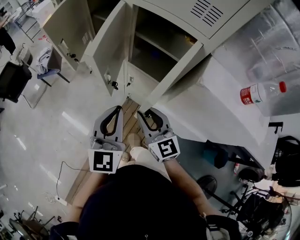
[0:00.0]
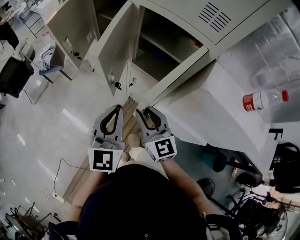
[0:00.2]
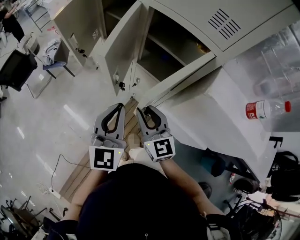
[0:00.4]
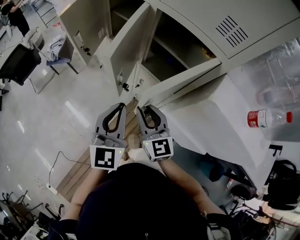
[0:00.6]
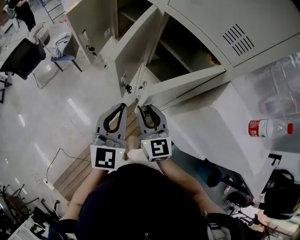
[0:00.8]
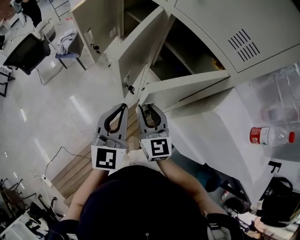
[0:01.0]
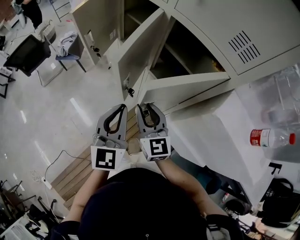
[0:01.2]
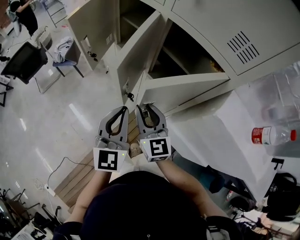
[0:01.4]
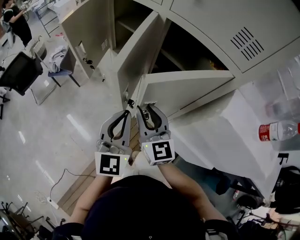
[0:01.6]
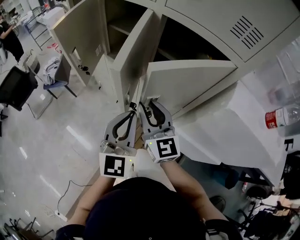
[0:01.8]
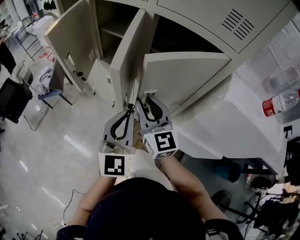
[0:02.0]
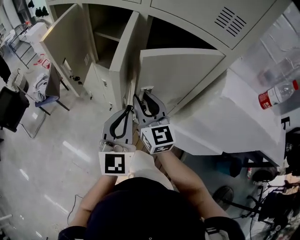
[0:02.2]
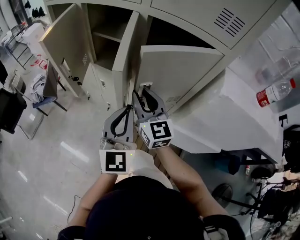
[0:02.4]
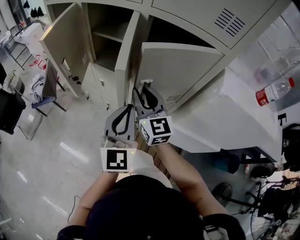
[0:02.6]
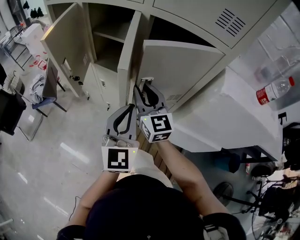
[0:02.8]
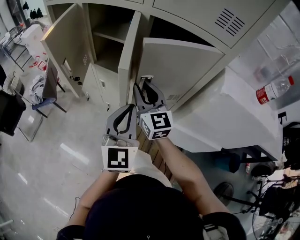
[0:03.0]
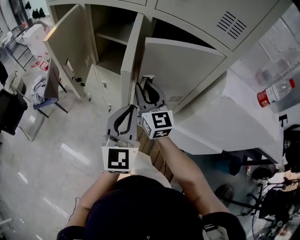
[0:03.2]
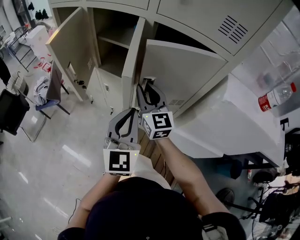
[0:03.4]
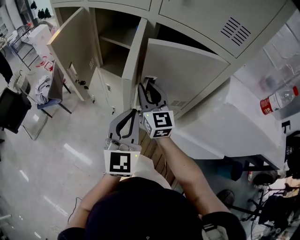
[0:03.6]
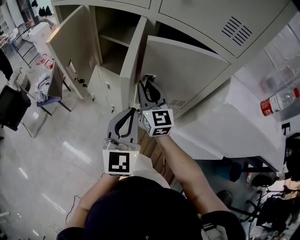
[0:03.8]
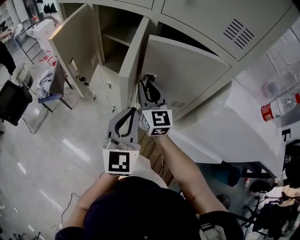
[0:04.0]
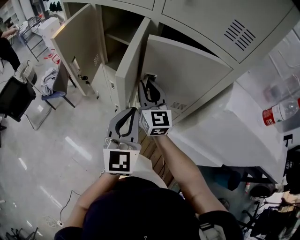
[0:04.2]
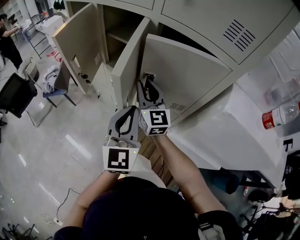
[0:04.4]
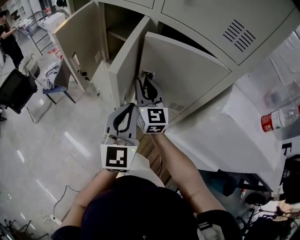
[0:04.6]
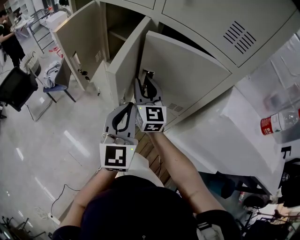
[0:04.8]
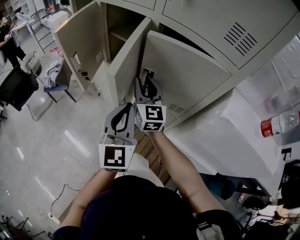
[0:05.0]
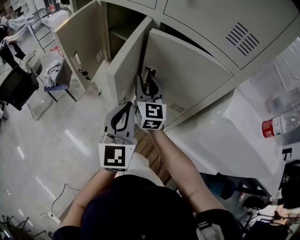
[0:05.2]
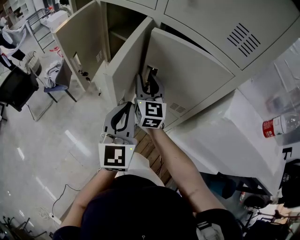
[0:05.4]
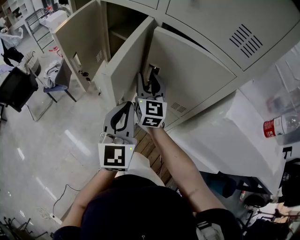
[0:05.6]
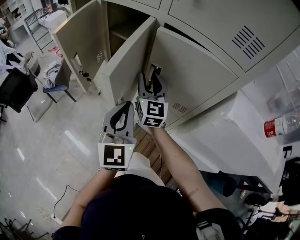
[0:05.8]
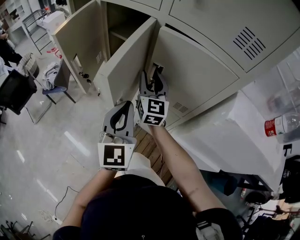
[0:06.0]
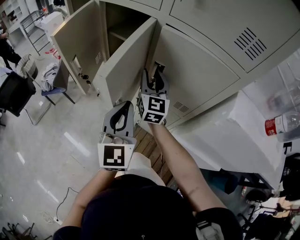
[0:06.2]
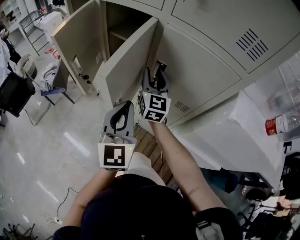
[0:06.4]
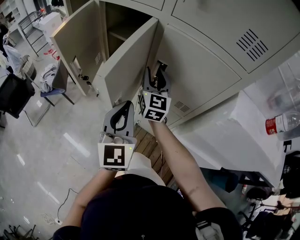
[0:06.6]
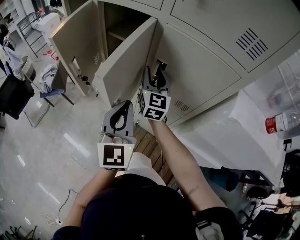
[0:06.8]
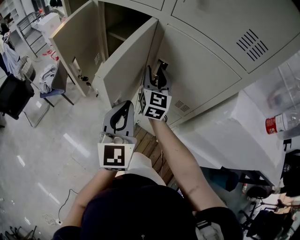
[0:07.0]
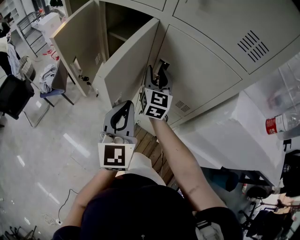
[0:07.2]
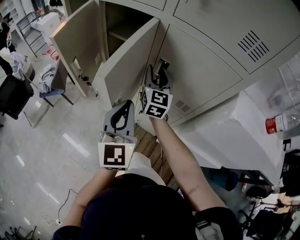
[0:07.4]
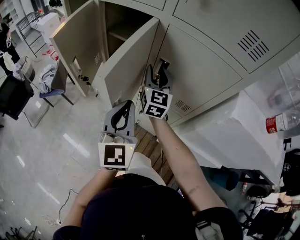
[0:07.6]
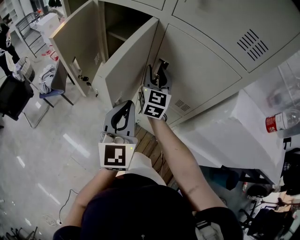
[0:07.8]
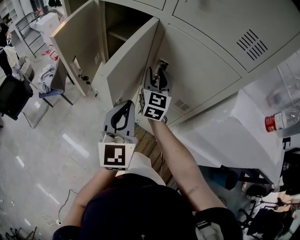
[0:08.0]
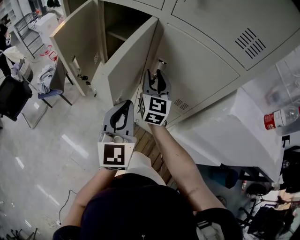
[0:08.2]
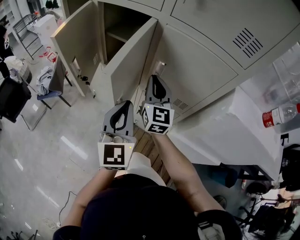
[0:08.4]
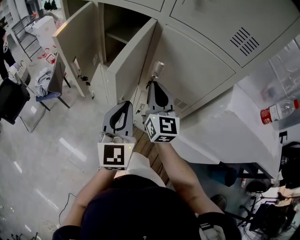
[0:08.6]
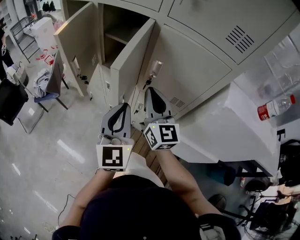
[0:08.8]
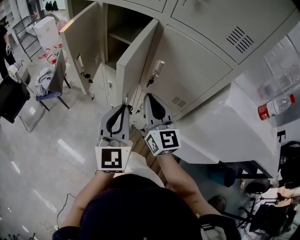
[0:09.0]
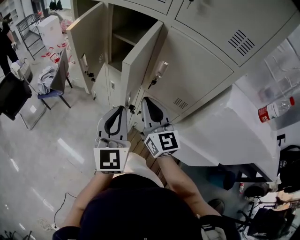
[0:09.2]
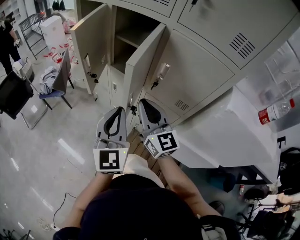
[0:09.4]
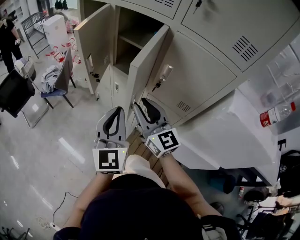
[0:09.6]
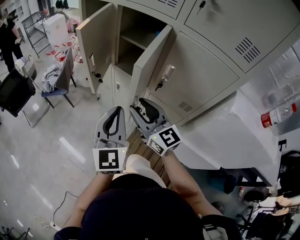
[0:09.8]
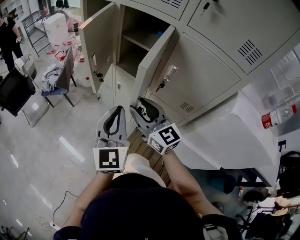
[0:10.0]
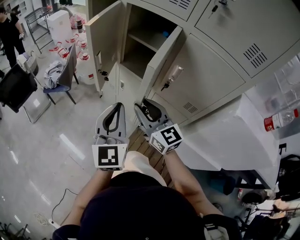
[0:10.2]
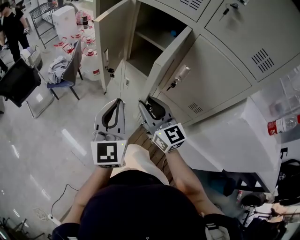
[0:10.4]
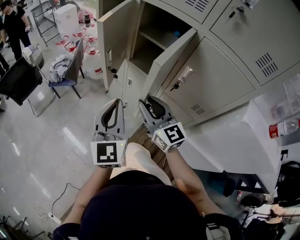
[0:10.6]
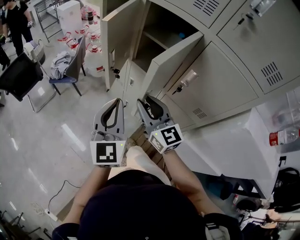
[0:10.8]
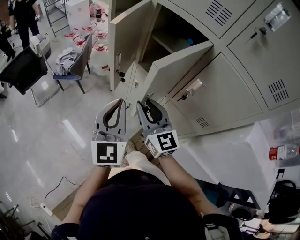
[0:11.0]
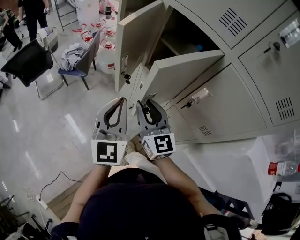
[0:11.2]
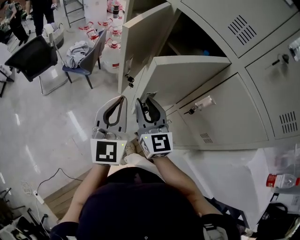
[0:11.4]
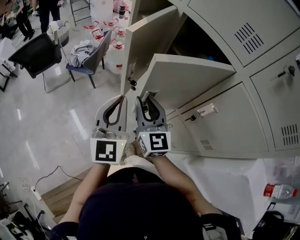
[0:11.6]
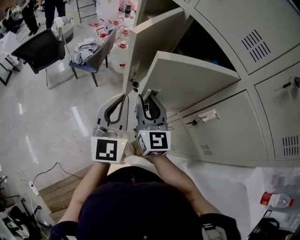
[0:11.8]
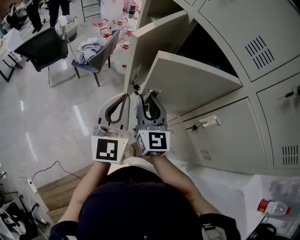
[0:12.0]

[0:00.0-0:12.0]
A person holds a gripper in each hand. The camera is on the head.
0:00.0 to 0:01.6: The right gripper shifts about 10 cm forward and to the left, while the left gripper travels forward by approximately 5 cm.
0:01.6 to 0:03.0: The right gripper travels forward by roughly 10 cm.
0:03.0 to 0:04.4: The grippers stay close to where they were, moving slightly.
0:04.4 to 0:06.0: The right gripper heads forward, covering approximately 5 cm.
0:06.0 to 0:07.6: The grippers make only small movements.
0:07.6 to 0:09.0: The left gripper heads backward, covering approximately 5 cm. The right gripper moves backward, some 15 cm, and closes.
0:09.0 to 0:10.4: Both grippers move to the left, about 10 cm. The right gripper changes its angle by roughly 20 degrees, and opens its fingers.
0:10.4 to 0:12.0: The left gripper shifts approximately 10 cm forward. The right gripper travels forward and to the left by roughly 15 cm.

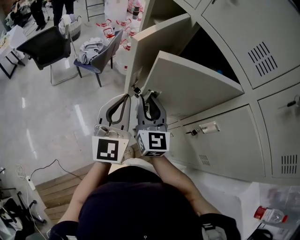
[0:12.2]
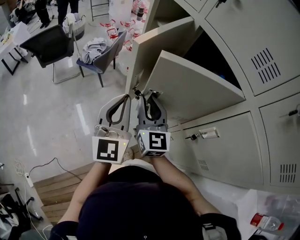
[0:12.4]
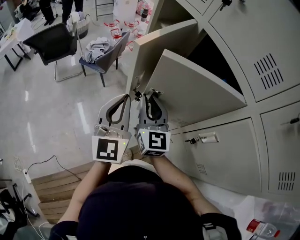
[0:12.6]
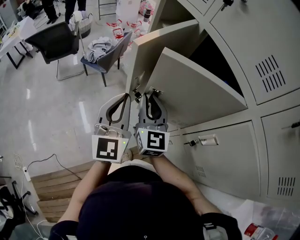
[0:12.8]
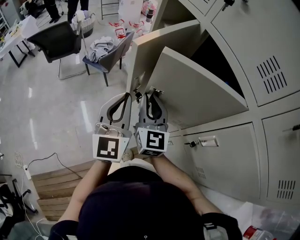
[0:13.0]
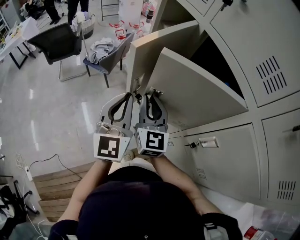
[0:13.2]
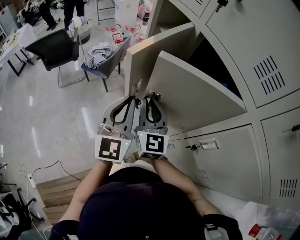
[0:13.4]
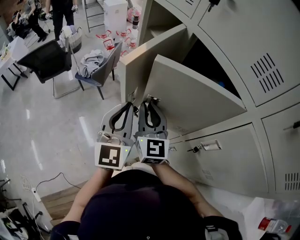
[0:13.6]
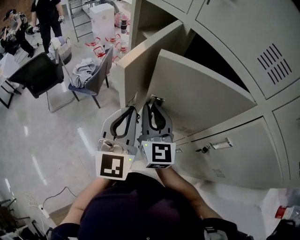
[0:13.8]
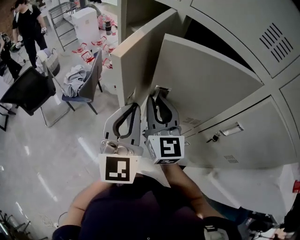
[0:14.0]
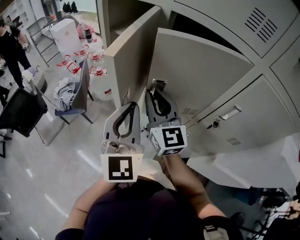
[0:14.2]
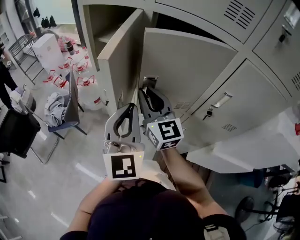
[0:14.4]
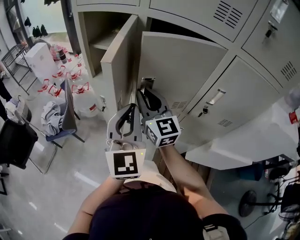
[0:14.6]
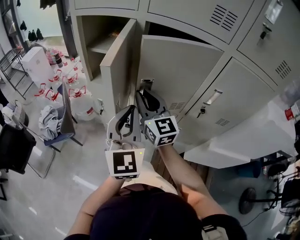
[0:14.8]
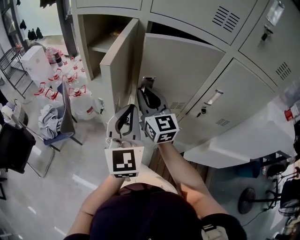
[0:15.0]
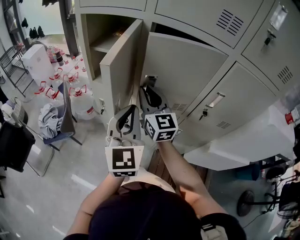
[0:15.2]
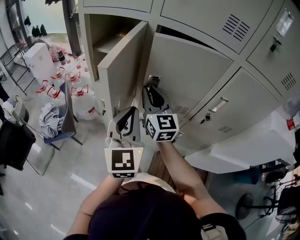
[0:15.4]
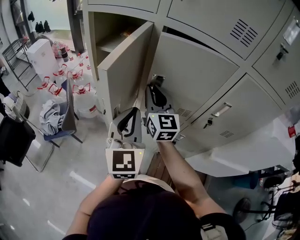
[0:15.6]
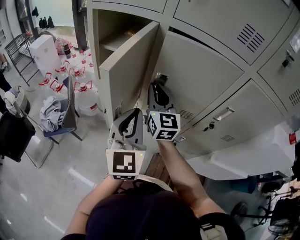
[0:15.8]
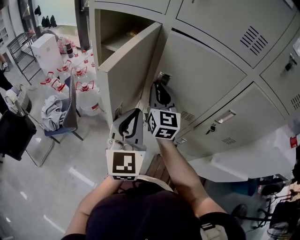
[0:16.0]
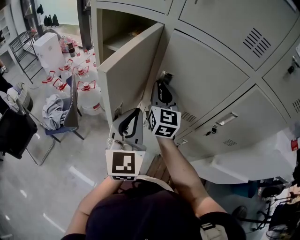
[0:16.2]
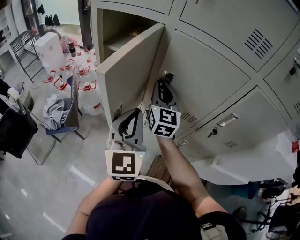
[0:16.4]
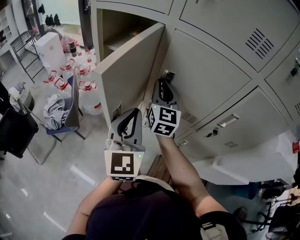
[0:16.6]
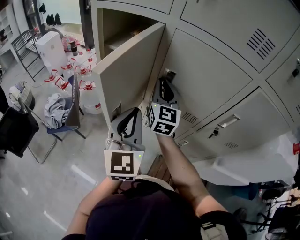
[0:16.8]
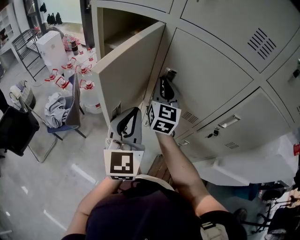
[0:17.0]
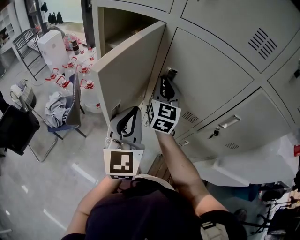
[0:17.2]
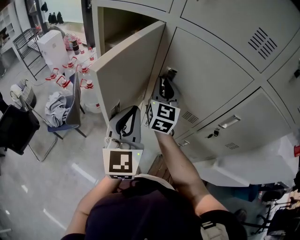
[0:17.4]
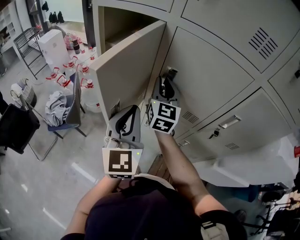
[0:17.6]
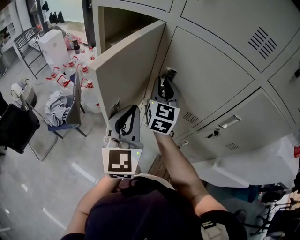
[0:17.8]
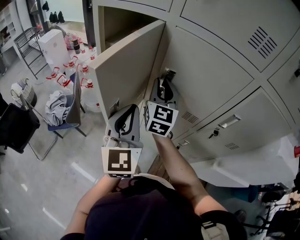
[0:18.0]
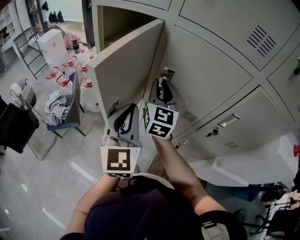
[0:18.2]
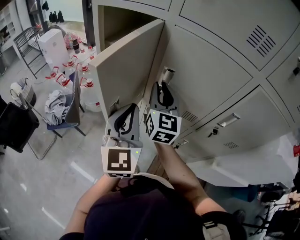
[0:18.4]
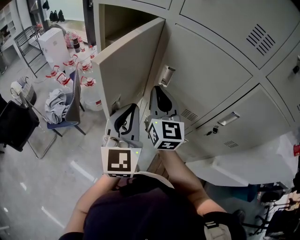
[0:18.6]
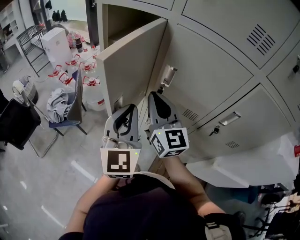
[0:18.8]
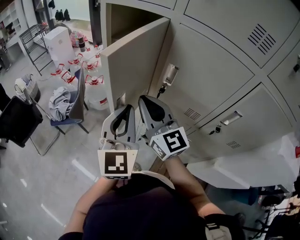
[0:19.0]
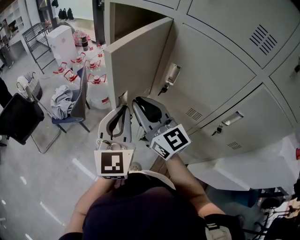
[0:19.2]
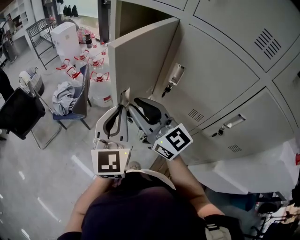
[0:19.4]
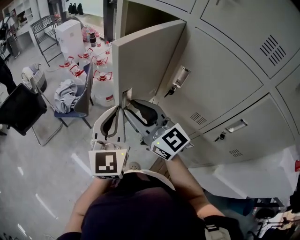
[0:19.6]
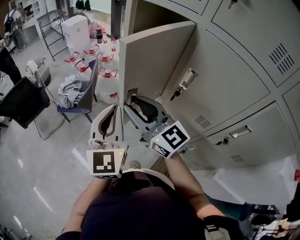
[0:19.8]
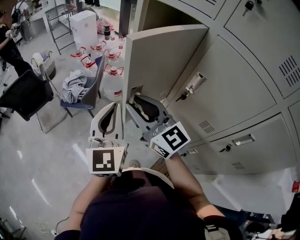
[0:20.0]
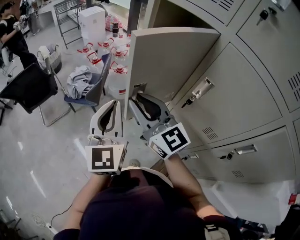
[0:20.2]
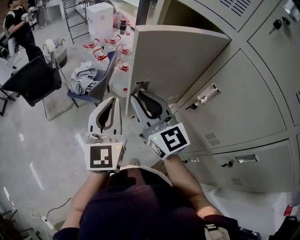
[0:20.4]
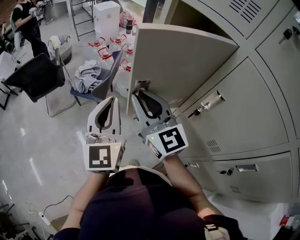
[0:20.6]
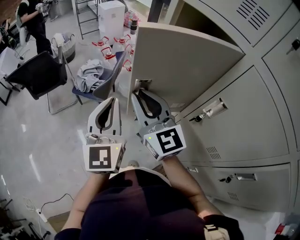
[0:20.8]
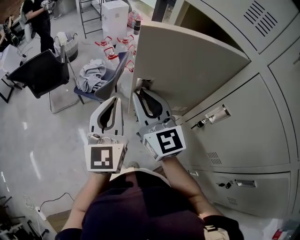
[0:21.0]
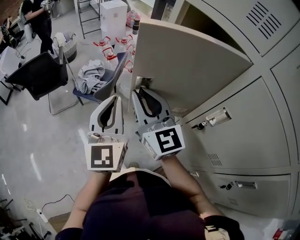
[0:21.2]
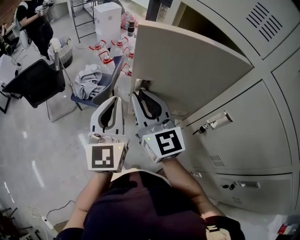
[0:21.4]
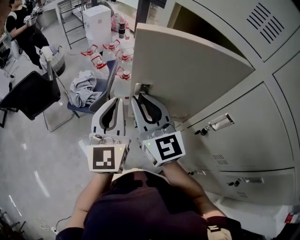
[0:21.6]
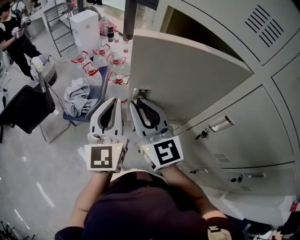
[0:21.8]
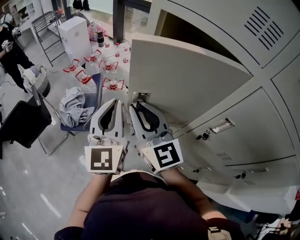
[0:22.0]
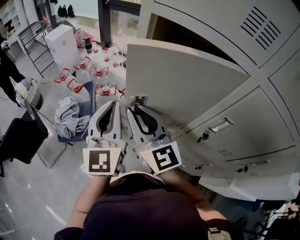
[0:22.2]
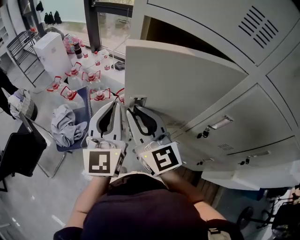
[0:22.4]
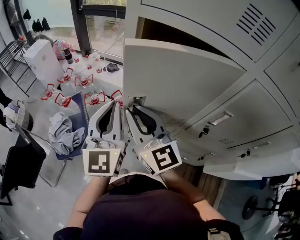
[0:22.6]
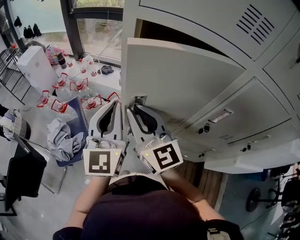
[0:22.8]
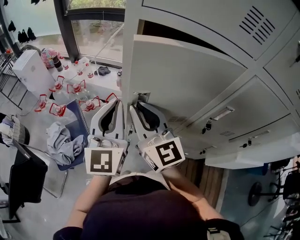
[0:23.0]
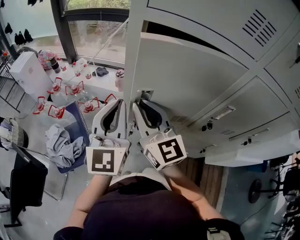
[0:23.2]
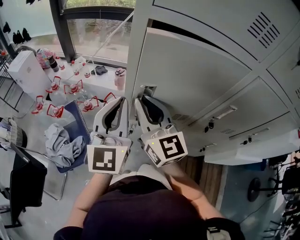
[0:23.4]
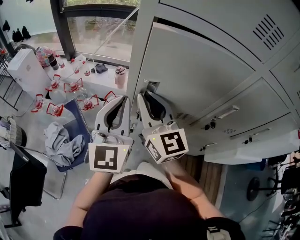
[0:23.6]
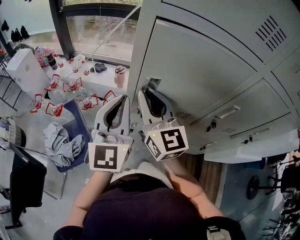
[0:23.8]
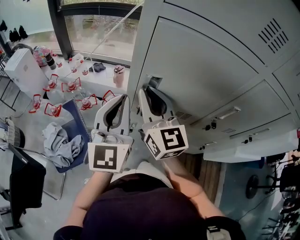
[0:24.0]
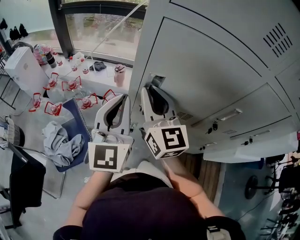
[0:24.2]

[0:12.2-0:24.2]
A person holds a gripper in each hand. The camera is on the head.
0:12.2 to 0:13.8: The grippers both shift forward by approximately 5 cm.
0:13.8 to 0:15.2: The left gripper rotates approximately 30 degrees, while the right gripper moves approximately 5 cm, and rotates about 20 degrees.
0:15.2 to 0:16.6: The right gripper moves forward, some 10 cm.
0:16.6 to 0:18.2: The two grippers keep their place.
0:18.2 to 0:19.8: The left gripper changes place by roughly 10 cm, while the right gripper shifts by roughly 20 cm, and rotates about 60 degrees.
0:19.8 to 0:21.2: Both grippers move forward, roughly 10 cm.
0:21.2 to 0:22.6: The right gripper ends up about 15 cm from where it was, and changes its angle by about 30 degrees, while the left gripper shifts by approximately 20 cm, and changes its angle by about 40 degrees.
0:22.6 to 0:24.2: The left gripper moves forward, roughly 5 cm. Meanwhile the right gripper is displaced forward by approximately 10 cm, and changes its angle by about 20 degrees.
